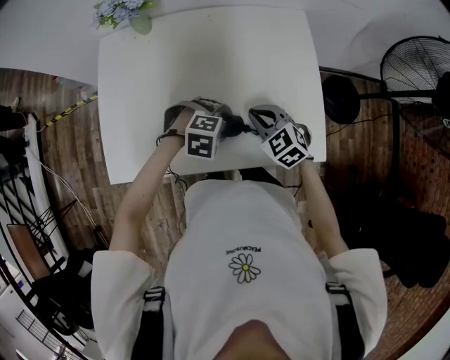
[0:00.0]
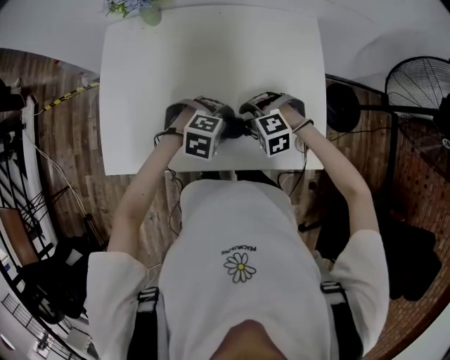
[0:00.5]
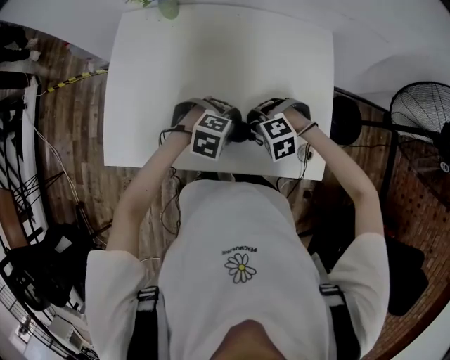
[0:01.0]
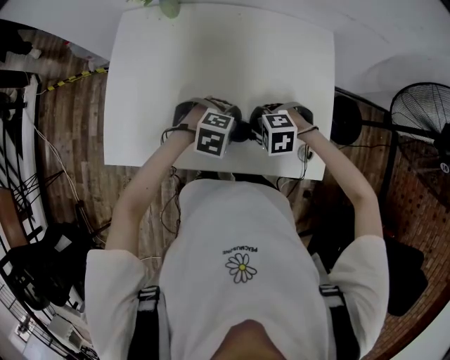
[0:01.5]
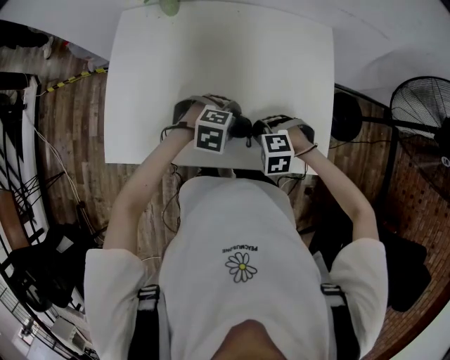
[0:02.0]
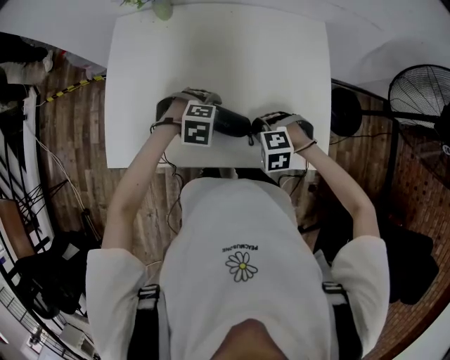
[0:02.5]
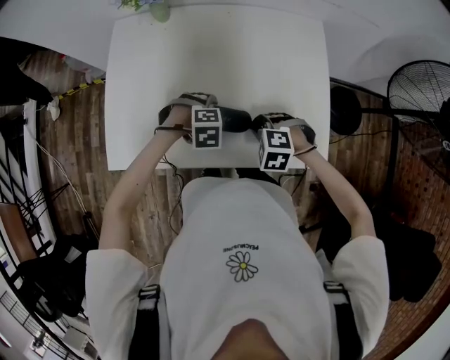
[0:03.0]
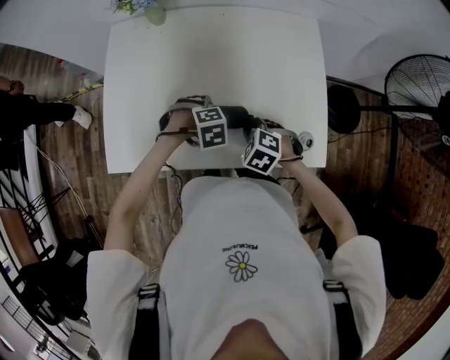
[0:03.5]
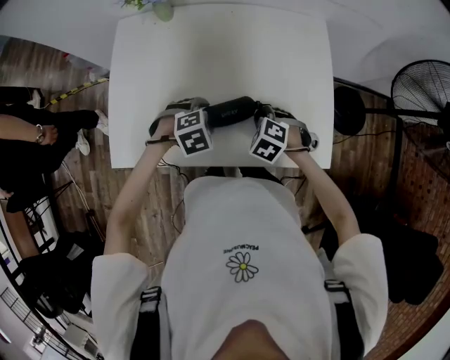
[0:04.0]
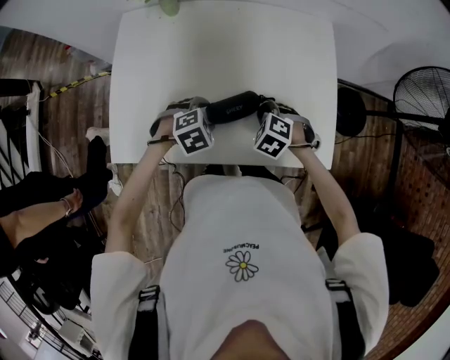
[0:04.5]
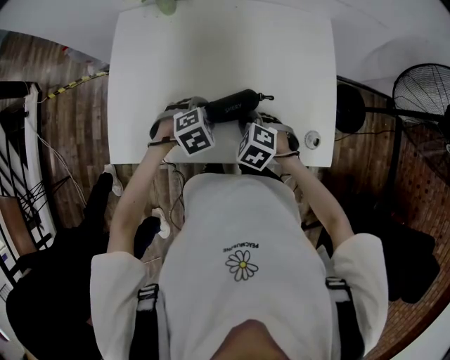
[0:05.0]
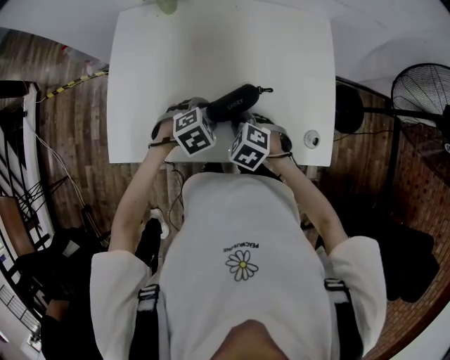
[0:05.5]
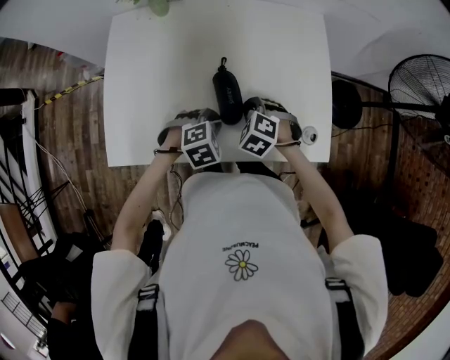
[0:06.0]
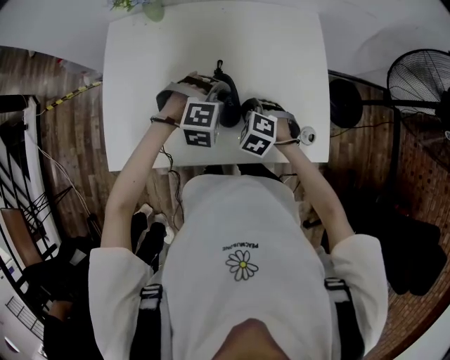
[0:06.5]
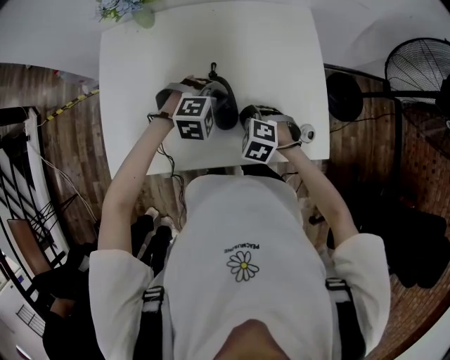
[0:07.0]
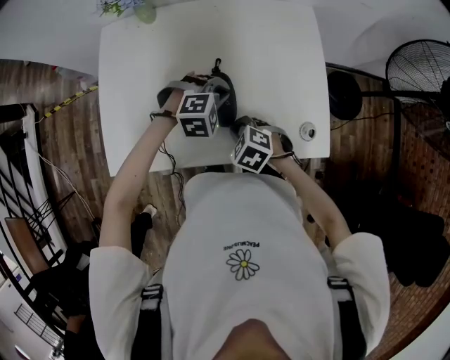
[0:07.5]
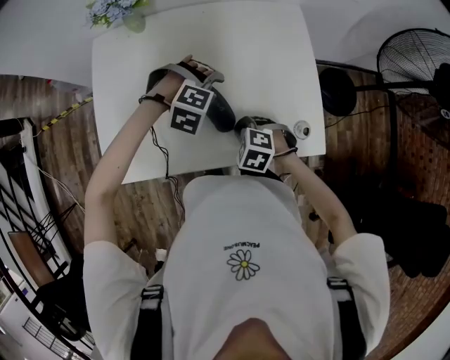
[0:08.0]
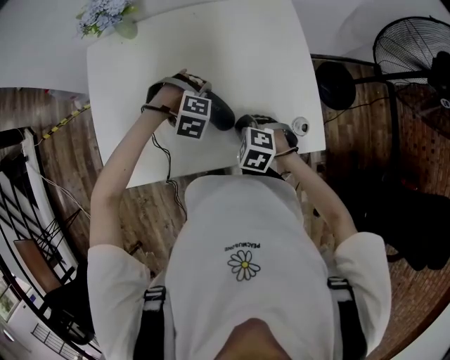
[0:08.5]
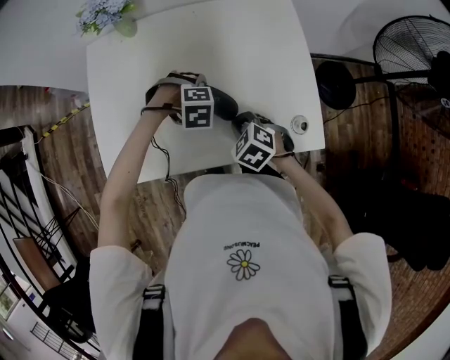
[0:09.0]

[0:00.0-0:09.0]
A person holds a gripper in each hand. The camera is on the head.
0:00.0 to 0:02.0: The right gripper shifts by about 10 cm, tilts its fingers roughly 30 degrees downward, and opens, then closes once more.
0:02.0 to 0:04.5: The right gripper moves about 5 cm, and rotates some 30 degrees; the left gripper ends up approximately 10 cm from where it was, and turns by approximately 30 degrees.
0:04.5 to 0:07.0: The left gripper heads to the right and forward, covering approximately 10 cm, turns by about 30 degrees, and closes.
0:07.0 to 0:09.0: The left gripper shifts by some 5 cm, turns by about 30 degrees, and opens its fingers.

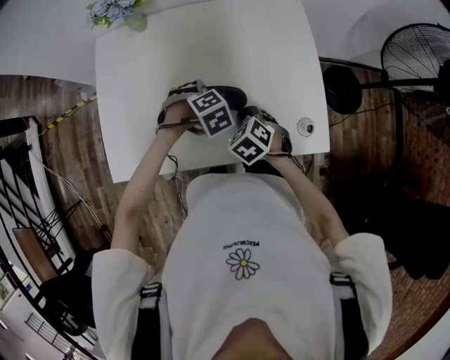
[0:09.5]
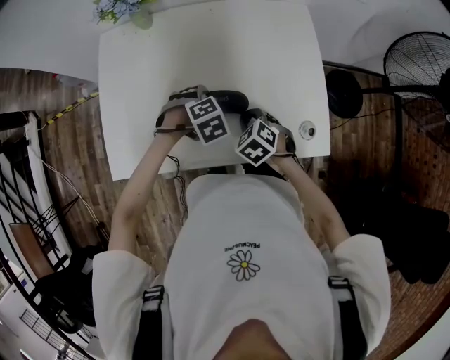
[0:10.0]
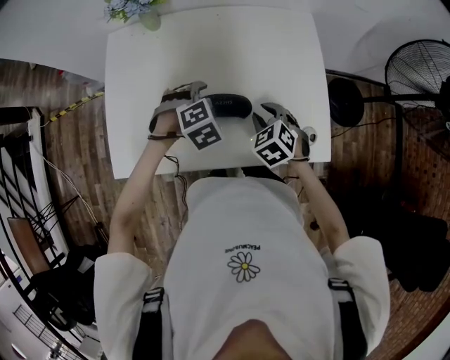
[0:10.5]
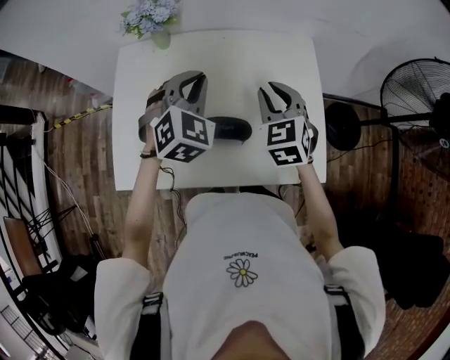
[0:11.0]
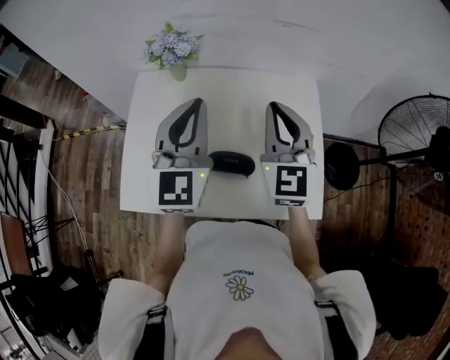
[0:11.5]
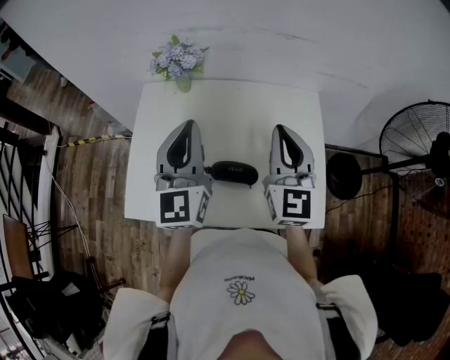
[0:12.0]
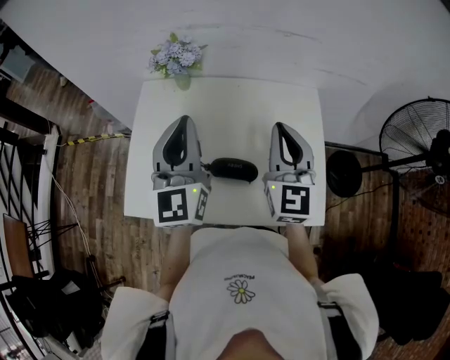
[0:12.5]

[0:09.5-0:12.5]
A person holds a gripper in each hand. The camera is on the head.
0:09.5 to 0:11.0: Both grippers move upward, approximately 20 cm. The left gripper angles its fingers upward, by some 50 degrees, and closes up. The right gripper tilts its fingers roughly 30 degrees upward.
0:11.0 to 0:12.5: The left gripper heads upward, to the left and backward, covering about 15 cm, and angles its fingers upward, by approximately 40 degrees, while the right gripper heads upward, covering approximately 10 cm, and tips its fingers upward by roughly 30 degrees.

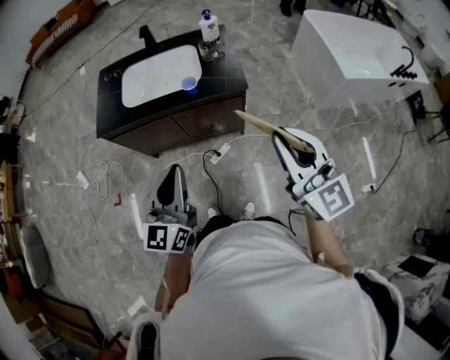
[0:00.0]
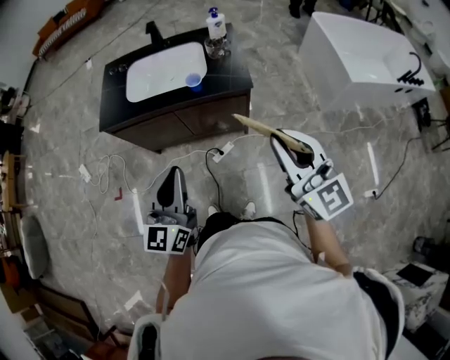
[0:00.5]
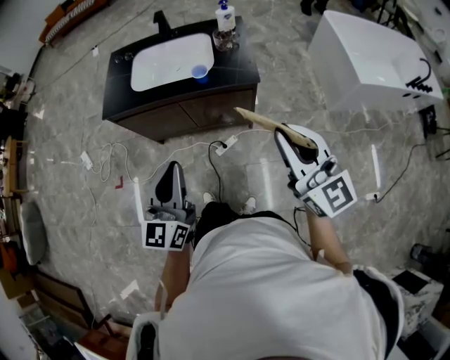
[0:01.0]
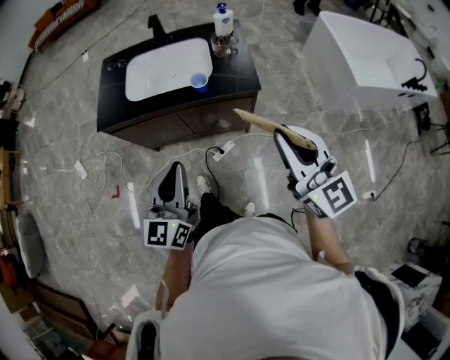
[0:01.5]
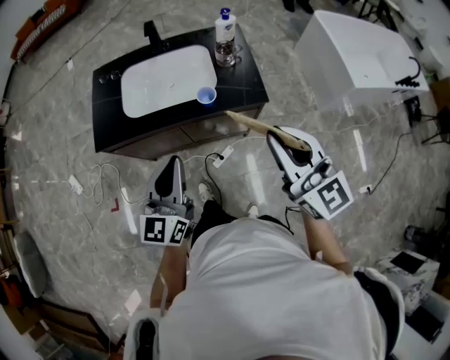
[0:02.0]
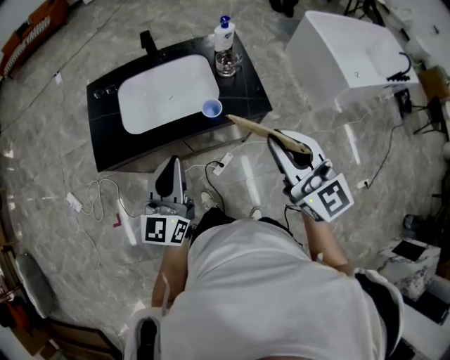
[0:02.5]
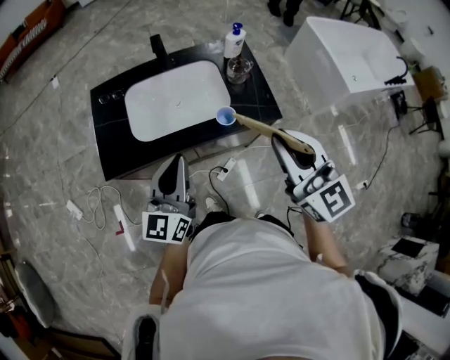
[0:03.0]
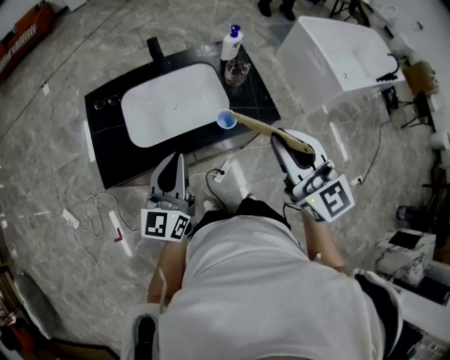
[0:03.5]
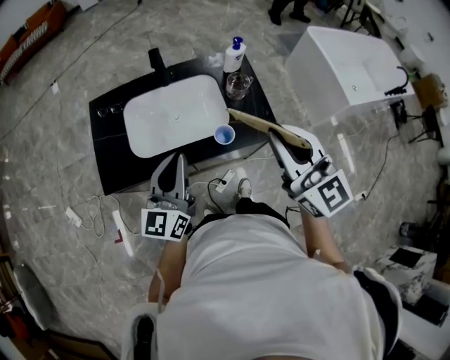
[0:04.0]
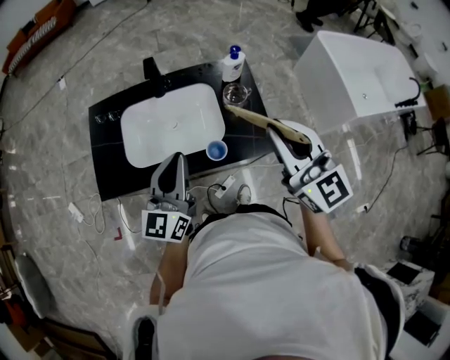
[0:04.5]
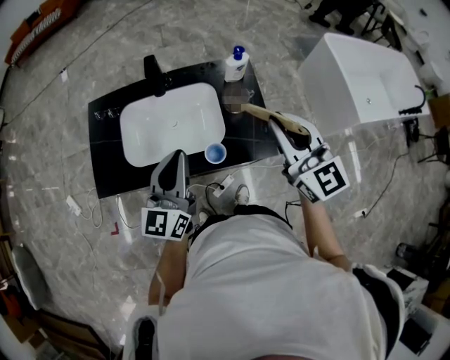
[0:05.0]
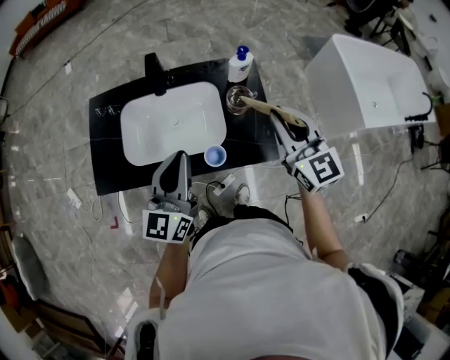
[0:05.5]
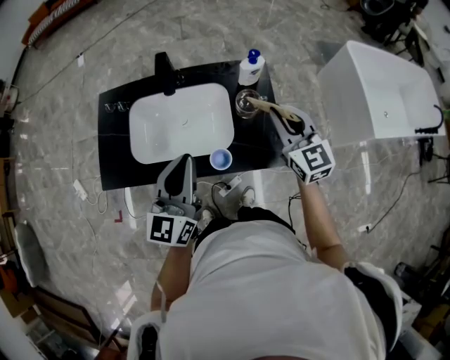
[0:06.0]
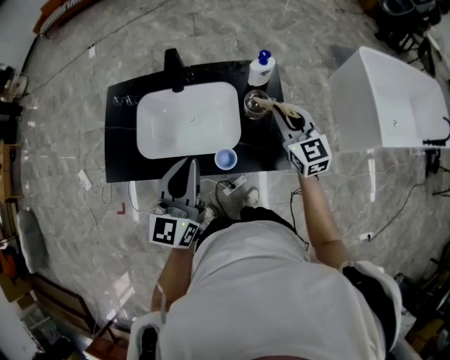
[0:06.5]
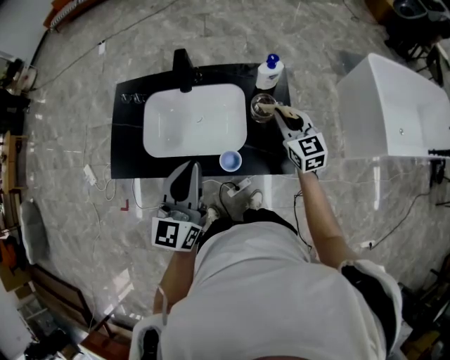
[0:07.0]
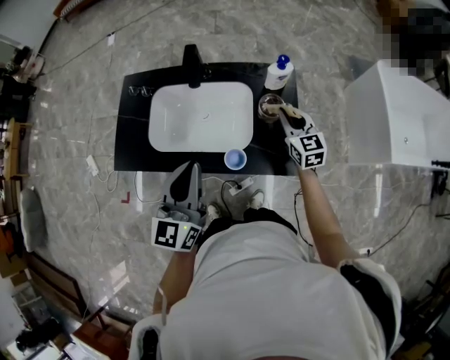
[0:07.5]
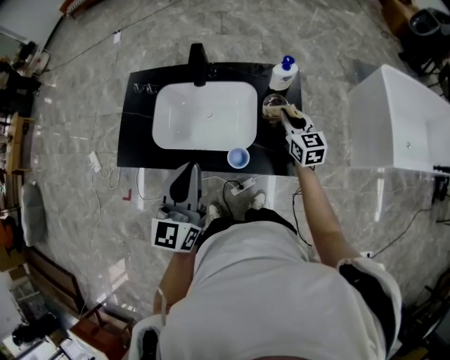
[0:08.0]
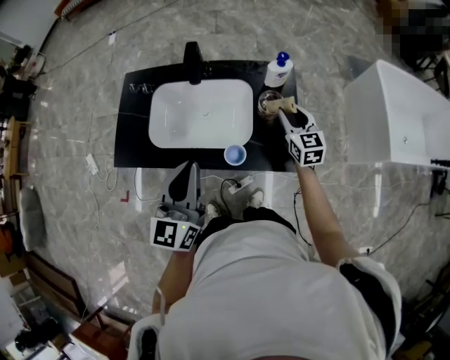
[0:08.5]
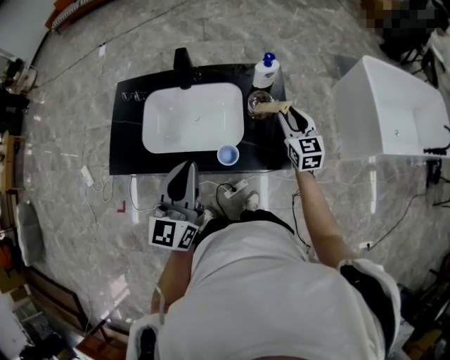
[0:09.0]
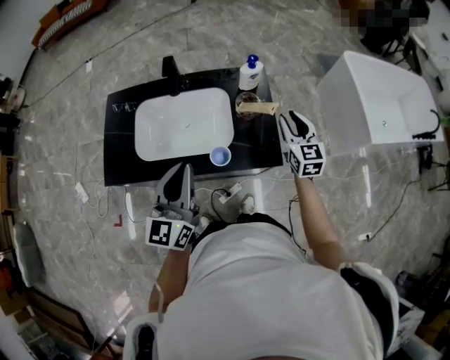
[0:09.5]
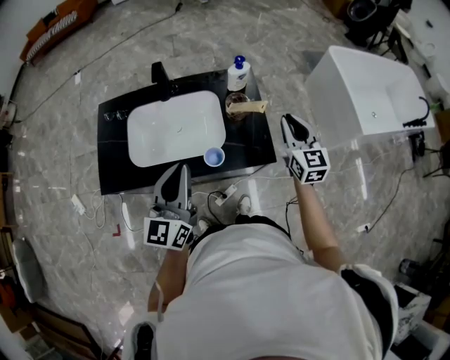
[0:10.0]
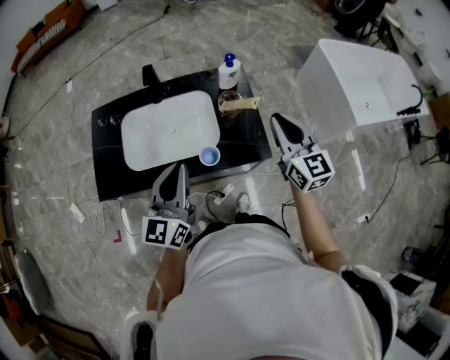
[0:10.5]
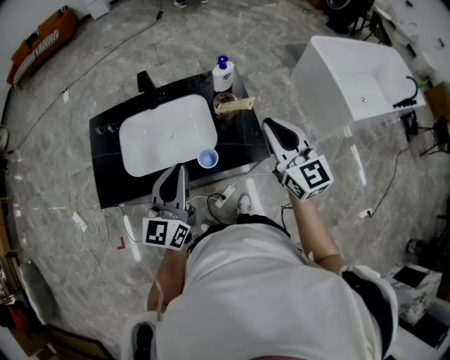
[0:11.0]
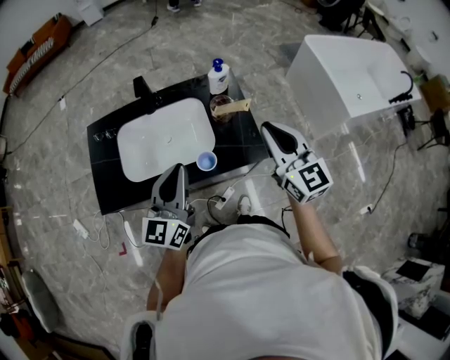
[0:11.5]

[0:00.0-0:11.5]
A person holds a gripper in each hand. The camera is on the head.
0:00.0 to 0:02.0: The left gripper moves forward, about 15 cm. Meanwhile the right gripper is displaced forward and to the left by about 15 cm.
0:02.0 to 0:04.0: The left gripper moves forward, some 15 cm, while the right gripper goes about 15 cm forward and to the left.
0:04.0 to 0:06.0: The left gripper heads to the right and forward, covering approximately 10 cm. The right gripper travels forward, downward and to the right by roughly 25 cm.
0:06.0 to 0:07.5: The right gripper heads downward and forward, covering approximately 15 cm.
0:07.5 to 0:09.5: The right gripper is displaced backward and to the right by approximately 10 cm.
0:09.5 to 0:11.5: The right gripper heads upward and backward, covering approximately 15 cm, and closes.

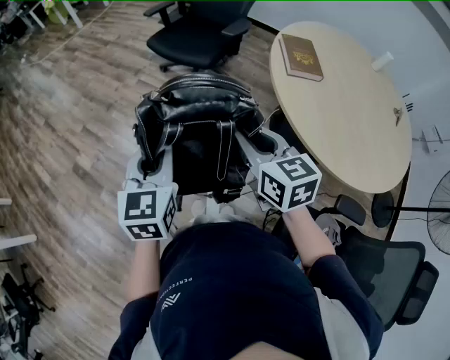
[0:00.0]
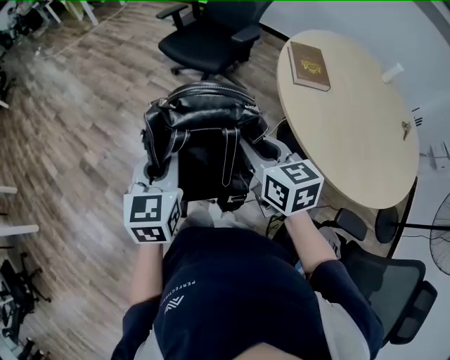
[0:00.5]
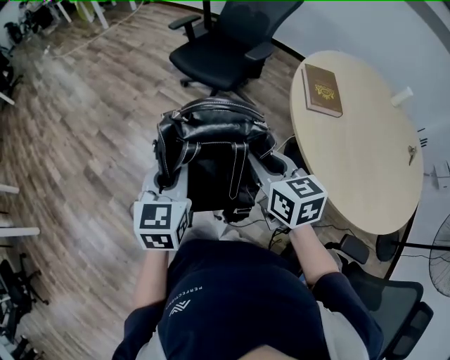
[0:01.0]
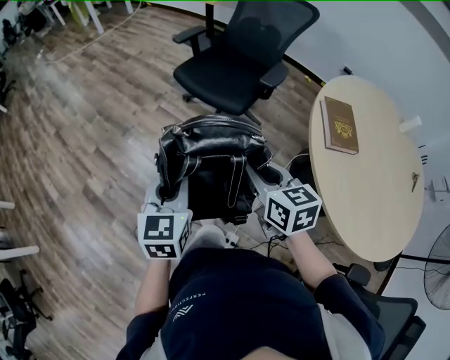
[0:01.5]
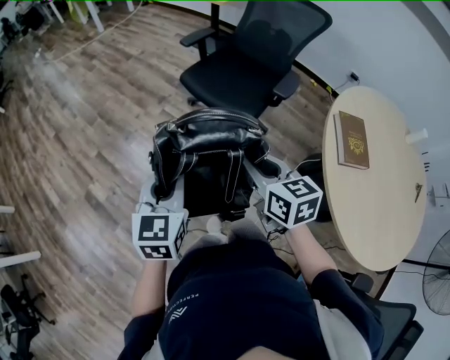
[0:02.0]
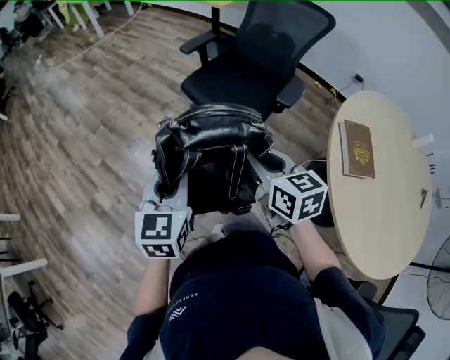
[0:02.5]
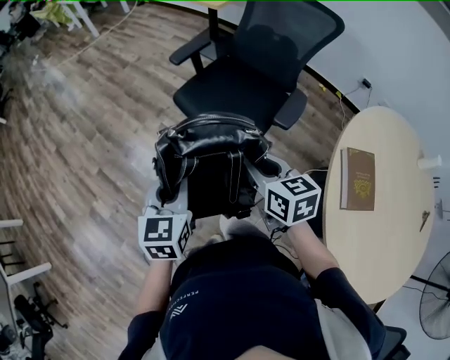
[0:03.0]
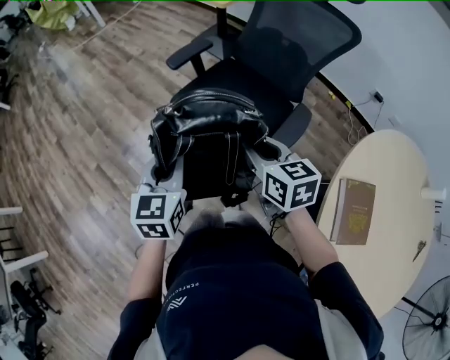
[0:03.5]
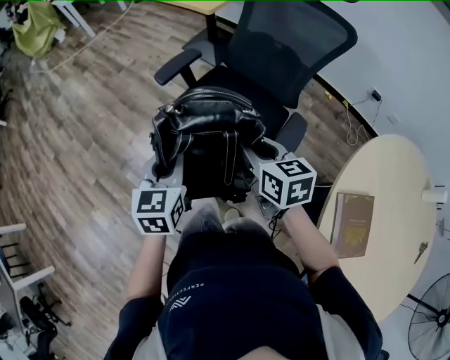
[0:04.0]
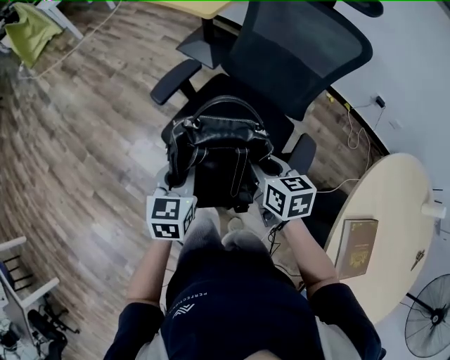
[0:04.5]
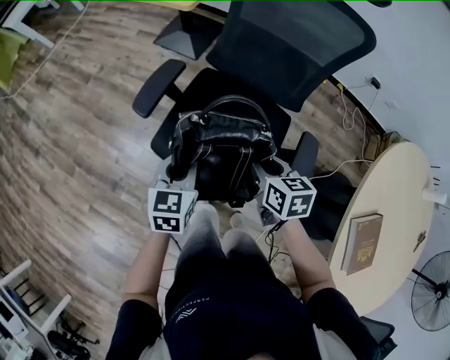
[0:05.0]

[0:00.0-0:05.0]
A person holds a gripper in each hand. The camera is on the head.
0:00.0 to 0:02.5: The grippers both shift forward by about 30 cm.
0:02.5 to 0:05.0: The two grippers travel together, forward, roughly 50 cm. The right gripper changes its angle by some 30 degrees; the left gripper swivels roughly 20 degrees.
